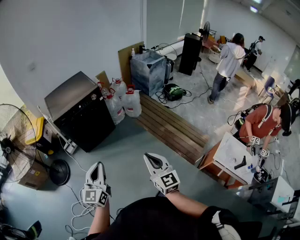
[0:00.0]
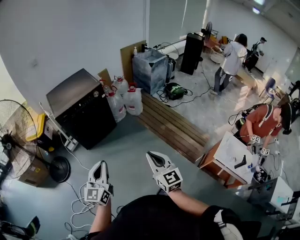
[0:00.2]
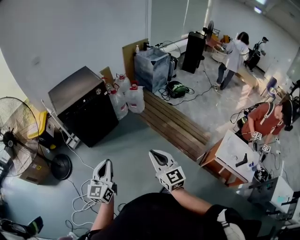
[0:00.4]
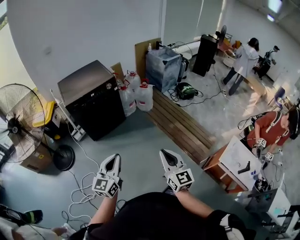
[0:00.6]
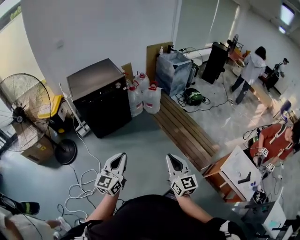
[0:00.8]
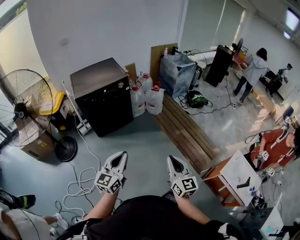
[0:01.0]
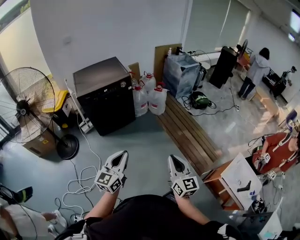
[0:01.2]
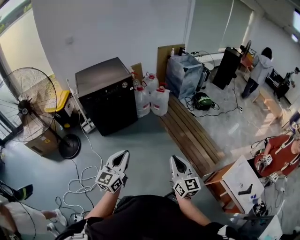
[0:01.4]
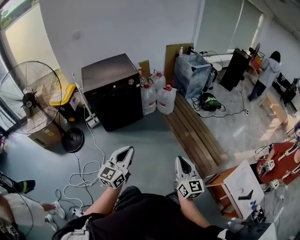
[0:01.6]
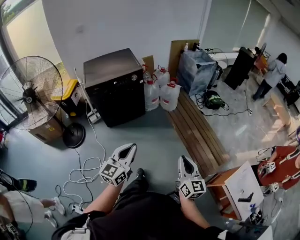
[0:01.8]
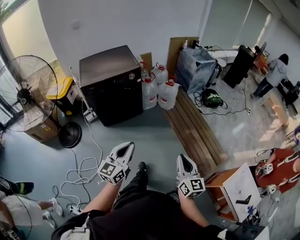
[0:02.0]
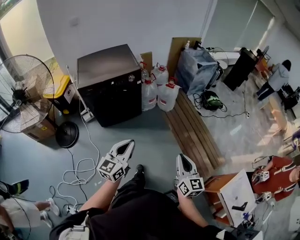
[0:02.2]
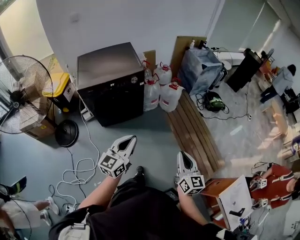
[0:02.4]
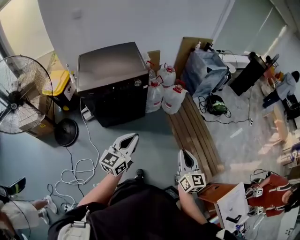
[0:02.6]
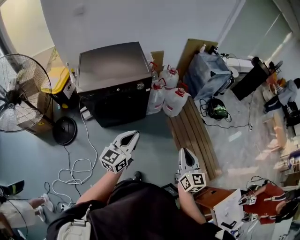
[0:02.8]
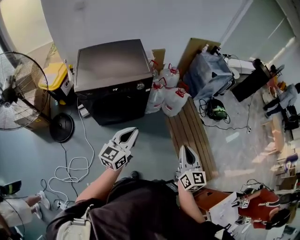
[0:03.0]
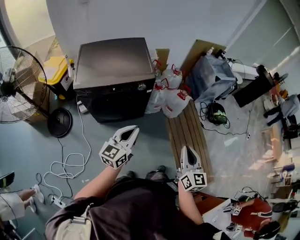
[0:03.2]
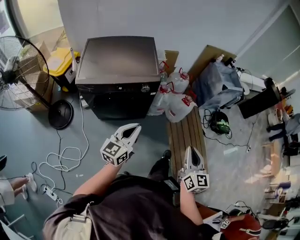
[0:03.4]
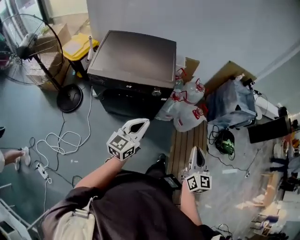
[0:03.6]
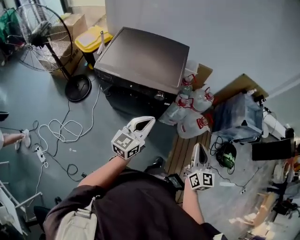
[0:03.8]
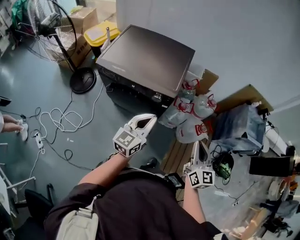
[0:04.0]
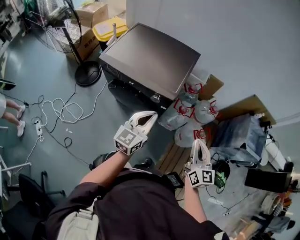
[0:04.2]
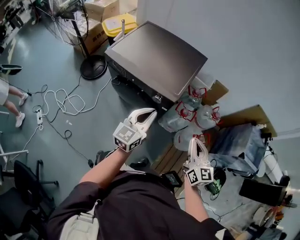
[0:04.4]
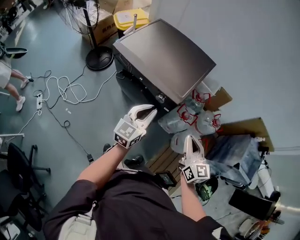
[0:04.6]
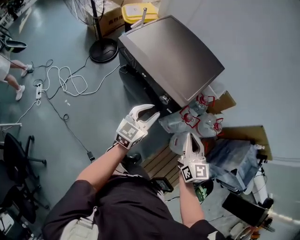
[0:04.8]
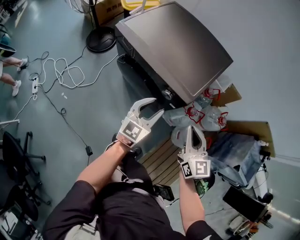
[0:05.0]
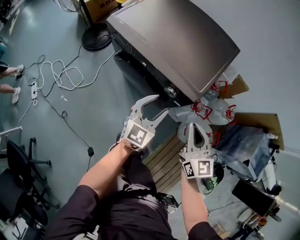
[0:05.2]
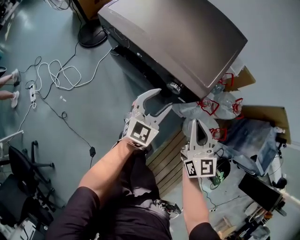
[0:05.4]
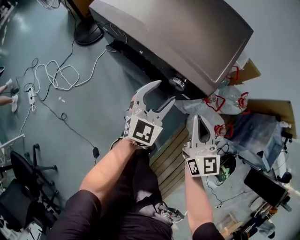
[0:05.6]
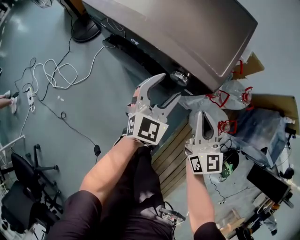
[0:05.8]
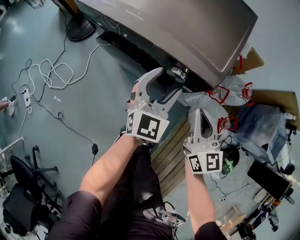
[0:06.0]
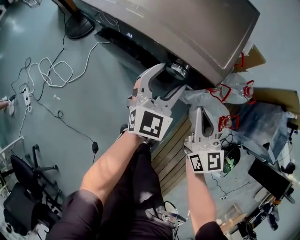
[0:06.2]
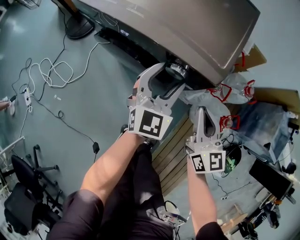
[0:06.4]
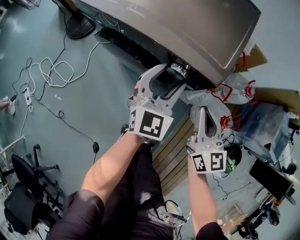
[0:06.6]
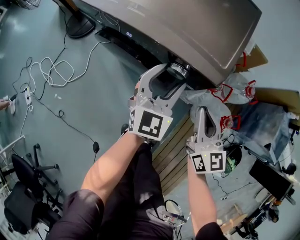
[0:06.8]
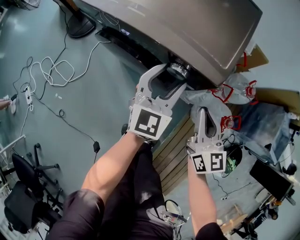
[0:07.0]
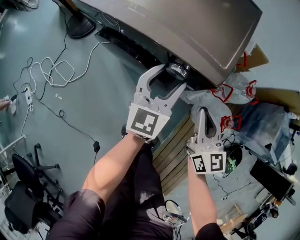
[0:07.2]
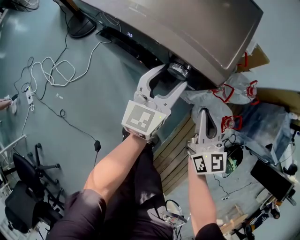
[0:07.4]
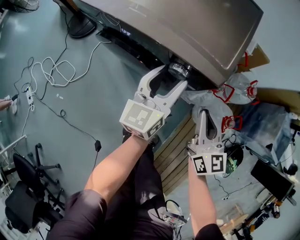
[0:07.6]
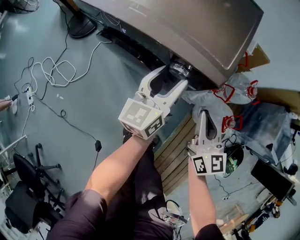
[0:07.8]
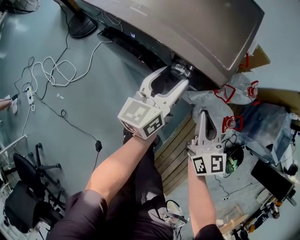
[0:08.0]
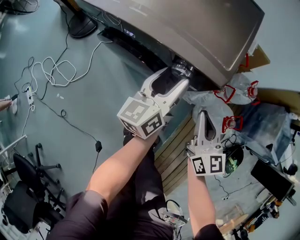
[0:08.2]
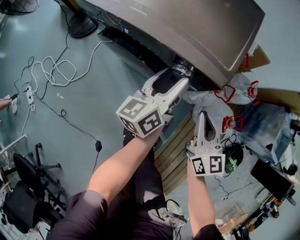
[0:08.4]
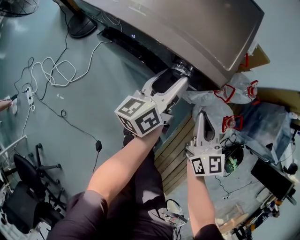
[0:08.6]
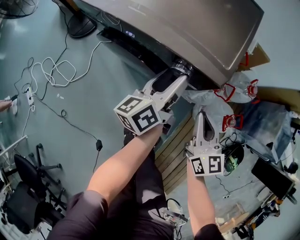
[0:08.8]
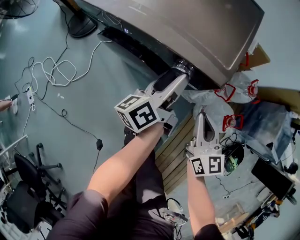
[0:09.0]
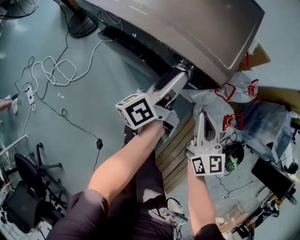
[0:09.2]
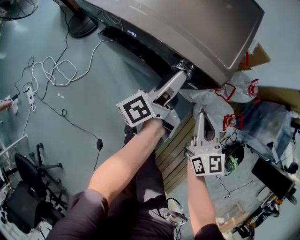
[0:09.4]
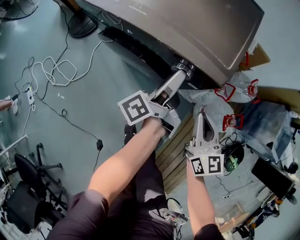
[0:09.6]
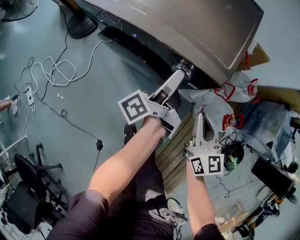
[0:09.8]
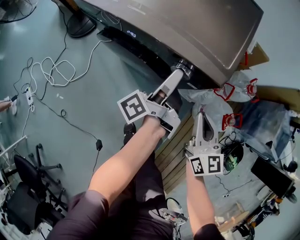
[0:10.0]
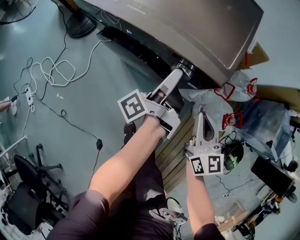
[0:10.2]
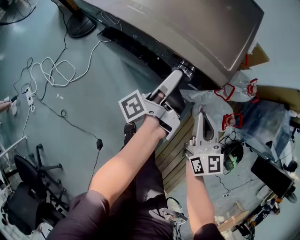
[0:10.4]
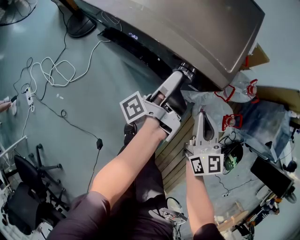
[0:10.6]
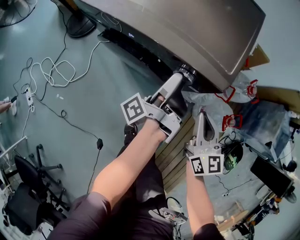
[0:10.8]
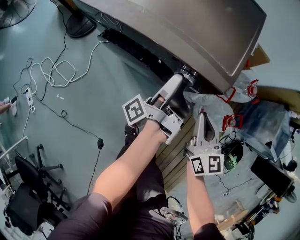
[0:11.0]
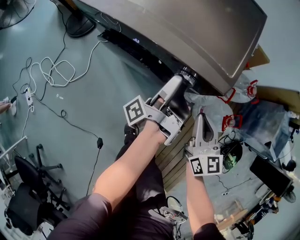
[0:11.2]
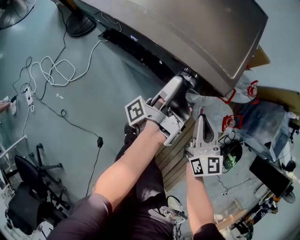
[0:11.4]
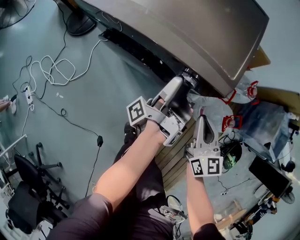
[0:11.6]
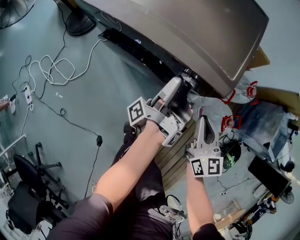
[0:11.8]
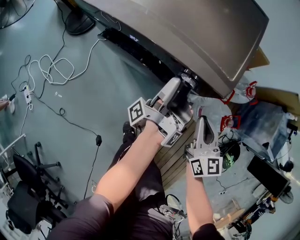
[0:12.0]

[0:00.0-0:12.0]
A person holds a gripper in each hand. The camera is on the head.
0:00.0 to 0:01.6: Both grippers travel together to the right, some 5 cm.
0:01.6 to 0:03.0: The pair of grippers is taken forward, some 40 cm.
0:03.0 to 0:04.4: The right gripper moves roughly 40 cm, and changes its angle by about 50 degrees. The left gripper changes place by approximately 30 cm, and swivels some 40 degrees.
0:04.4 to 0:06.0: The two grippers go about 25 cm downward and forward. The left gripper swivels approximately 30 degrees, and opens up.
0:06.0 to 0:07.6: The left gripper turns by some 40 degrees.
0:07.6 to 0:09.0: The left gripper changes its angle by about 40 degrees.
0:09.0 to 0:10.4: The left gripper rotates around the line of its fingers by about 40 degrees, counterclockwise from behind.
0:10.4 to 0:12.0: The left gripper swivels some 30 degrees.

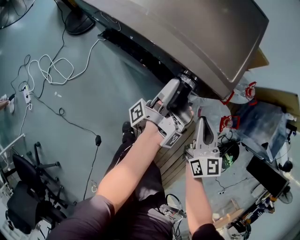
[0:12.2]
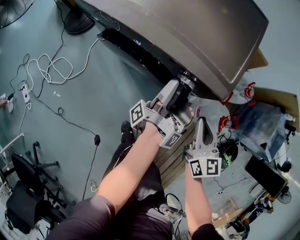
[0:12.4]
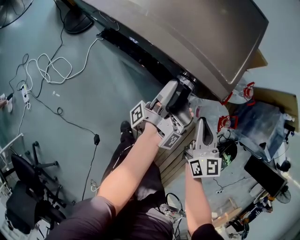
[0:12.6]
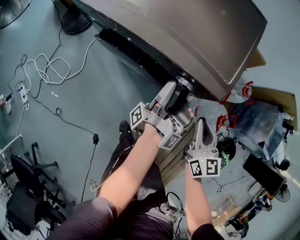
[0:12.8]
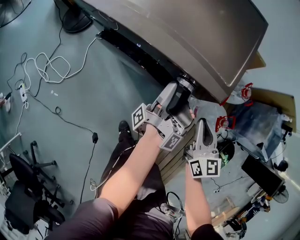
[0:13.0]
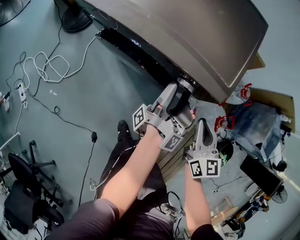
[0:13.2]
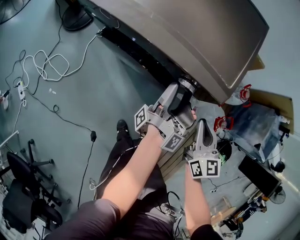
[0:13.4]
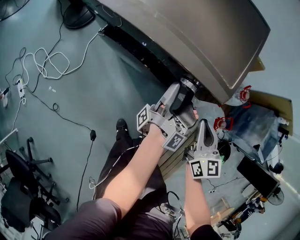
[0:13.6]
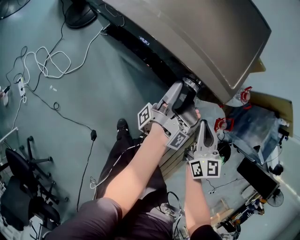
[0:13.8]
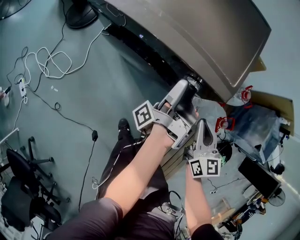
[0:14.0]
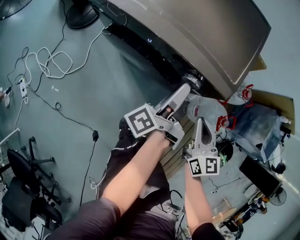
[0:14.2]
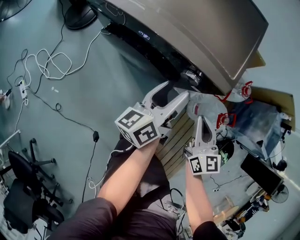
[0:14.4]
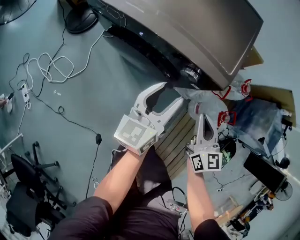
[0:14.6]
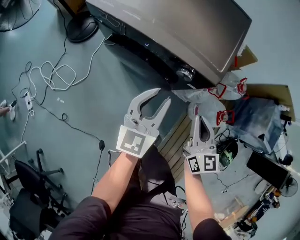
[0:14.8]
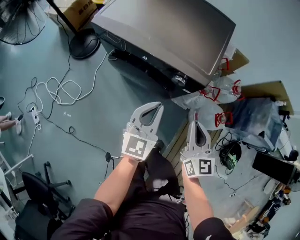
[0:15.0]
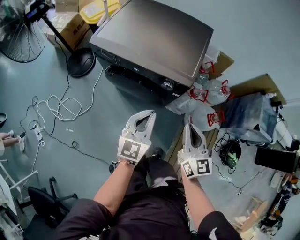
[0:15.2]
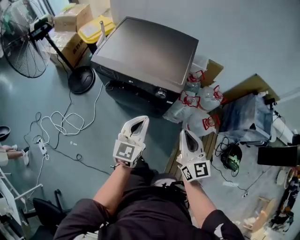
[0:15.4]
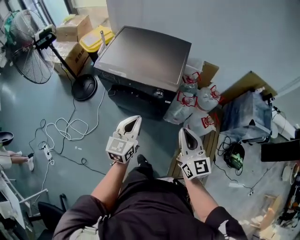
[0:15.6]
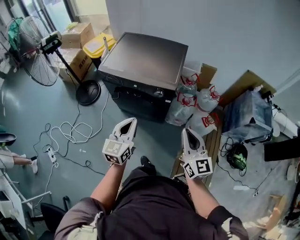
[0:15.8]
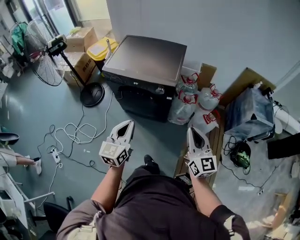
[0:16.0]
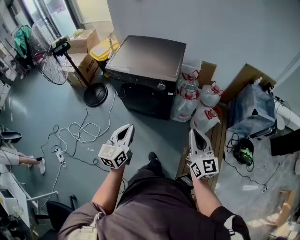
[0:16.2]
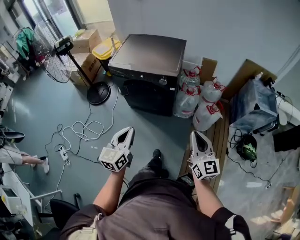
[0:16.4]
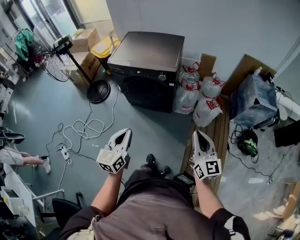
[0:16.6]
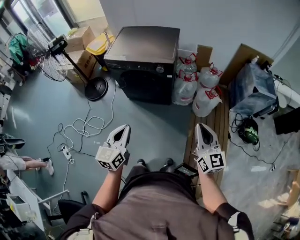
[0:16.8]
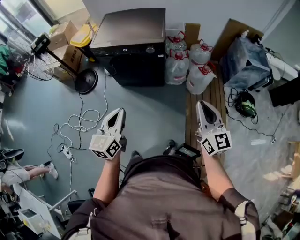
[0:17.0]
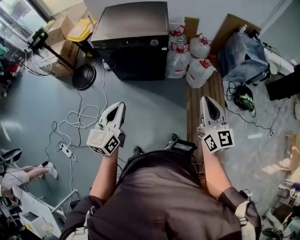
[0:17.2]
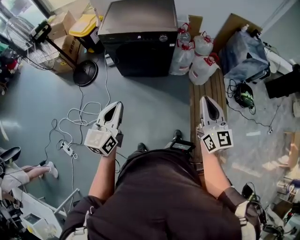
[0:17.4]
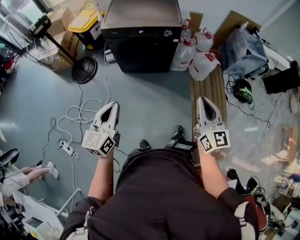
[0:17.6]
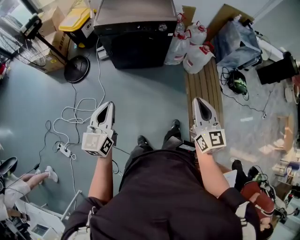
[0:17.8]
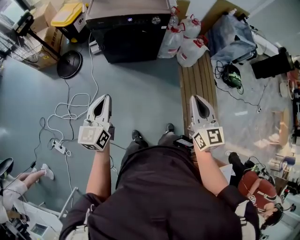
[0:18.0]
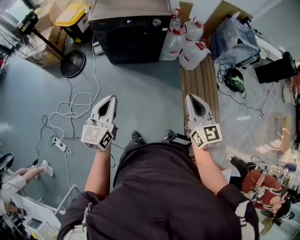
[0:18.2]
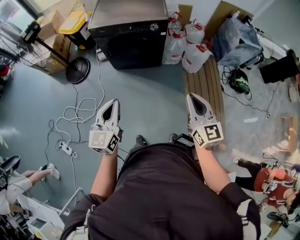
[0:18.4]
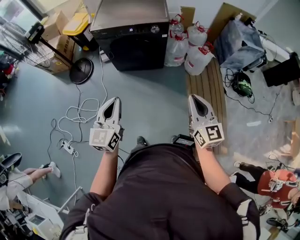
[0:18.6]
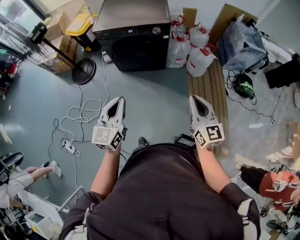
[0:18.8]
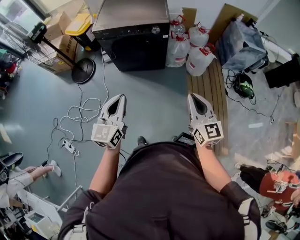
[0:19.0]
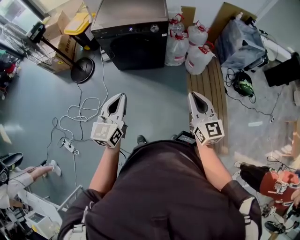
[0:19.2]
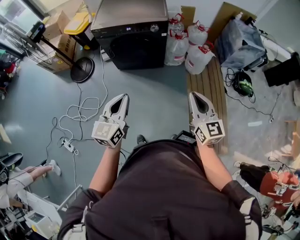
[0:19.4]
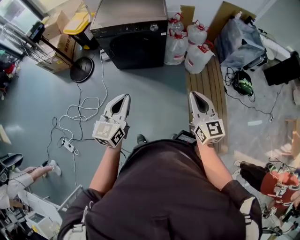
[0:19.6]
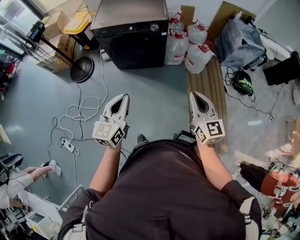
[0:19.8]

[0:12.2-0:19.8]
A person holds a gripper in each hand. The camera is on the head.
0:12.2 to 0:13.8: The grippers move only a little.
0:13.8 to 0:15.2: The right gripper travels upward and backward by approximately 20 cm, while the left gripper heads upward, backward and to the left, covering about 25 cm, twists about 140 degrees clockwise, seen from behind, and closes.
0:15.2 to 0:16.8: The left gripper is displaced backward by some 35 cm; the right gripper moves backward and upward, approximately 35 cm.
0:16.8 to 0:18.2: Both grippers travel together to the left and backward, about 20 cm.
0:18.2 to 0:19.8: Both grippers move to the right, roughly 5 cm.

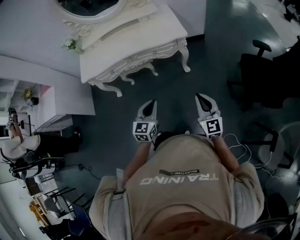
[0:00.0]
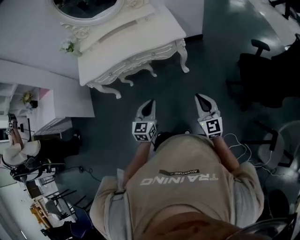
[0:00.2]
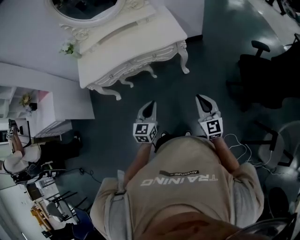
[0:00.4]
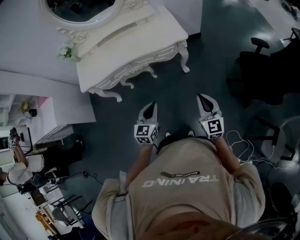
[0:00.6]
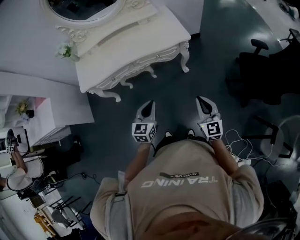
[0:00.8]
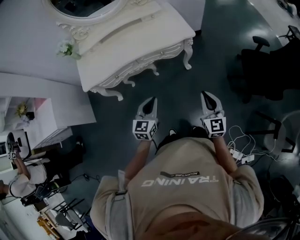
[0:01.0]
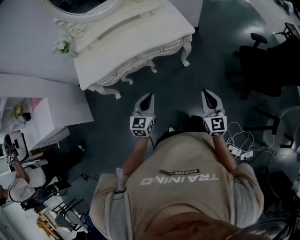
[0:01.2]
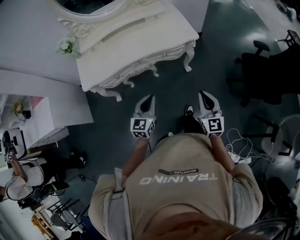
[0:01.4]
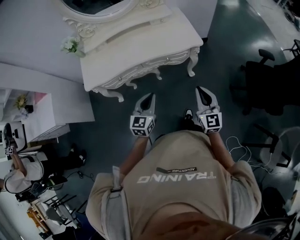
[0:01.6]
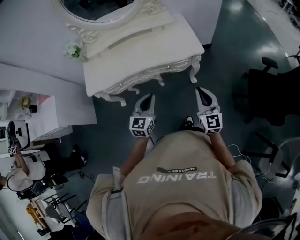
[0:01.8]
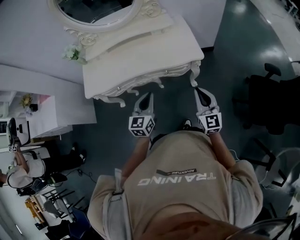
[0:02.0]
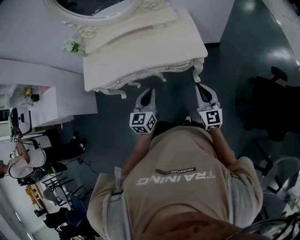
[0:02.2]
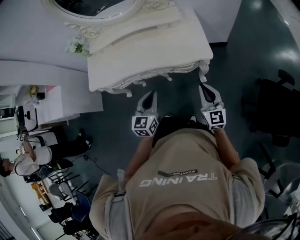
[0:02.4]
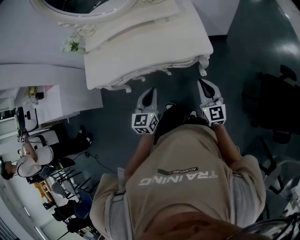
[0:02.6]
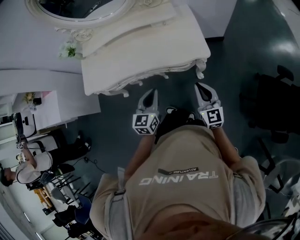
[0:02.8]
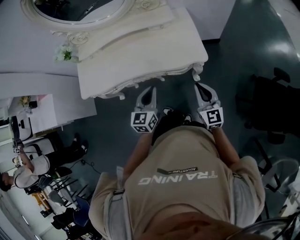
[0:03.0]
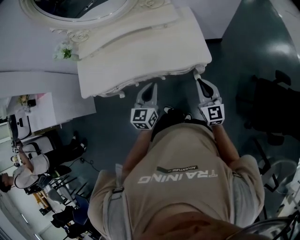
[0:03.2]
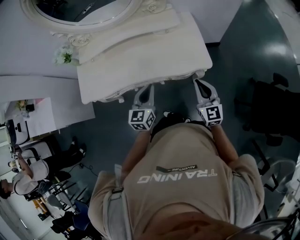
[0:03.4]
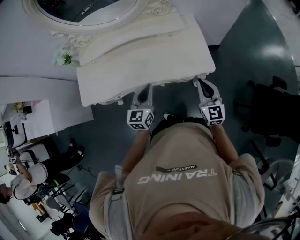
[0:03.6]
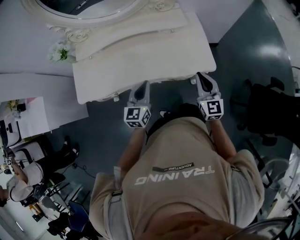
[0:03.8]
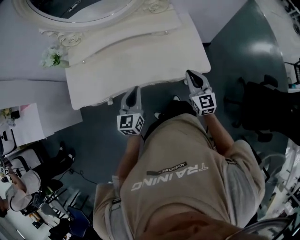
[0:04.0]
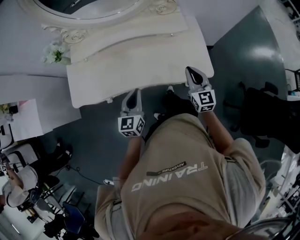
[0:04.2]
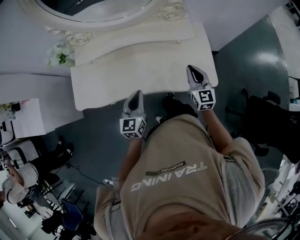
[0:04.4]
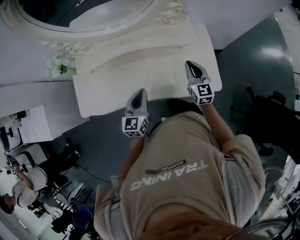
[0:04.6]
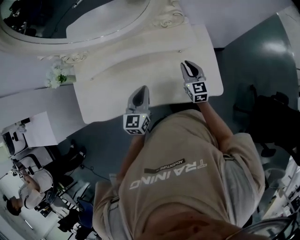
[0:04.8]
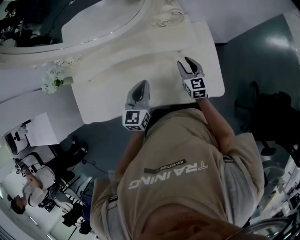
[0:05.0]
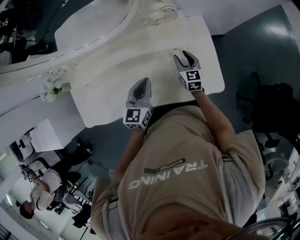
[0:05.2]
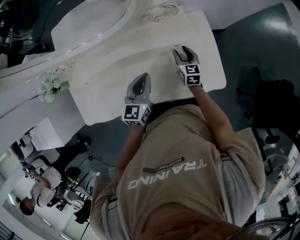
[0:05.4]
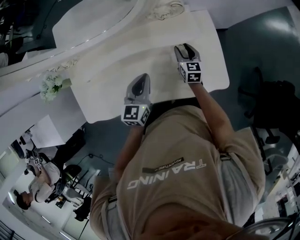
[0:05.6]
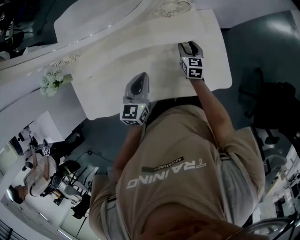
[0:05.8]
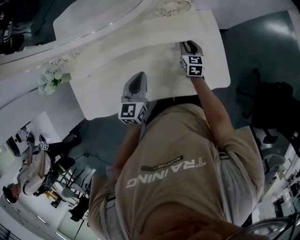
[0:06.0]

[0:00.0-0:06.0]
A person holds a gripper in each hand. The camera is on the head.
0:00.0 to 0:01.6: The two grippers go some 20 cm to the left and forward.
0:01.6 to 0:03.0: The two grippers go about 25 cm forward and to the right.
0:03.0 to 0:04.4: The right gripper moves forward and to the left, some 30 cm. The left gripper moves to the left and forward, about 20 cm.
0:04.4 to 0:06.0: The right gripper is displaced forward and downward by roughly 25 cm, swivels approximately 30 degrees, and opens, while the left gripper shifts about 20 cm forward.
